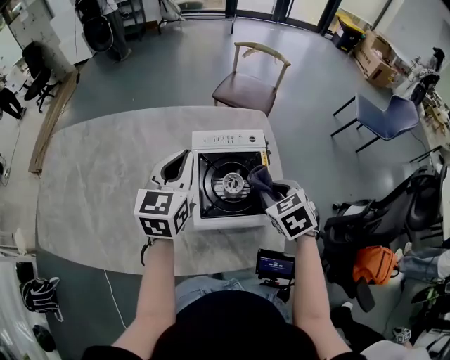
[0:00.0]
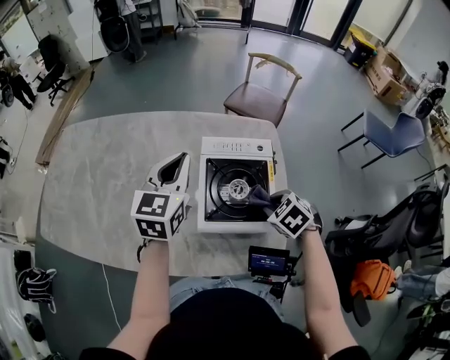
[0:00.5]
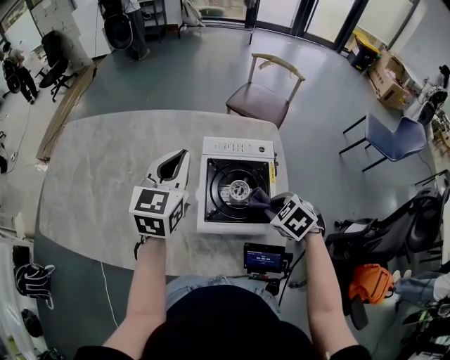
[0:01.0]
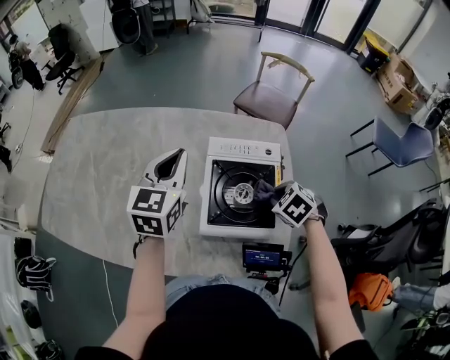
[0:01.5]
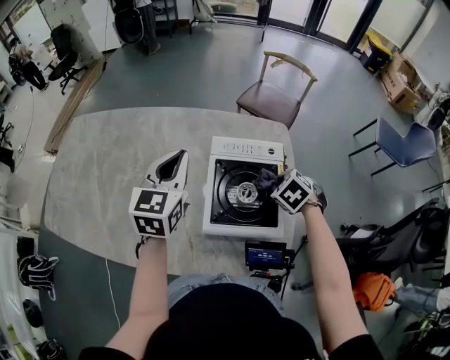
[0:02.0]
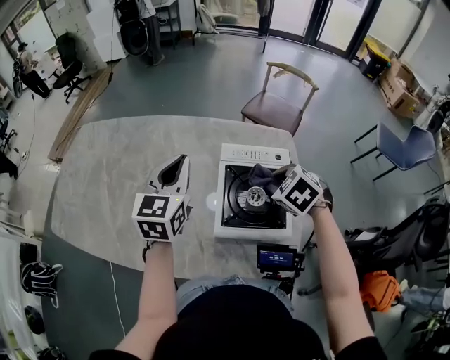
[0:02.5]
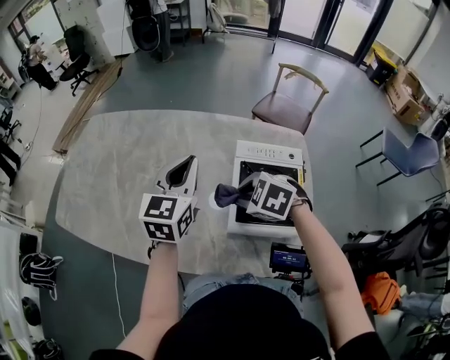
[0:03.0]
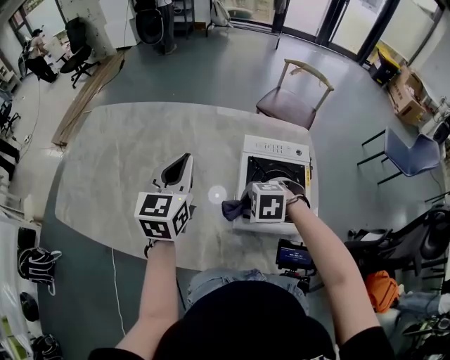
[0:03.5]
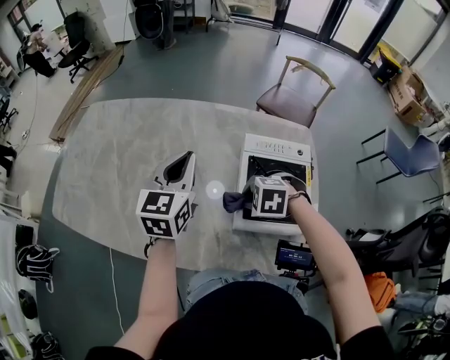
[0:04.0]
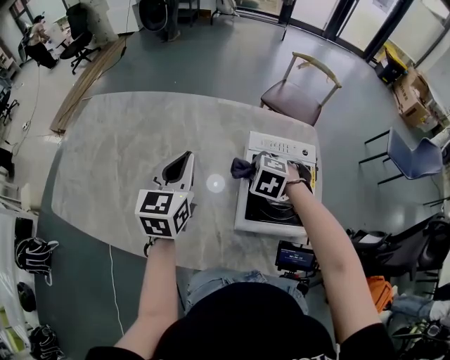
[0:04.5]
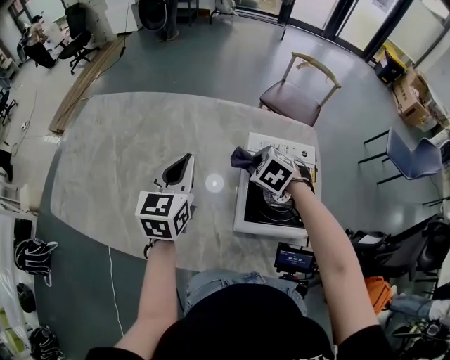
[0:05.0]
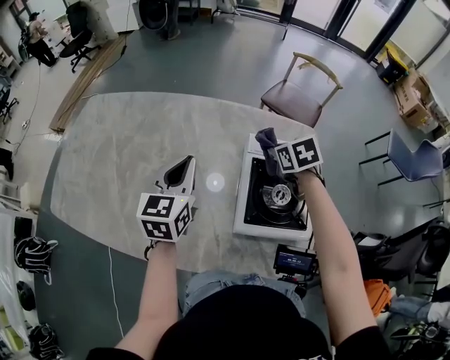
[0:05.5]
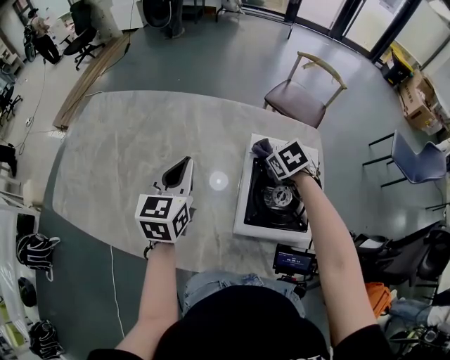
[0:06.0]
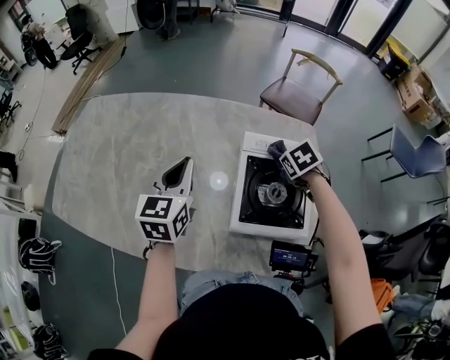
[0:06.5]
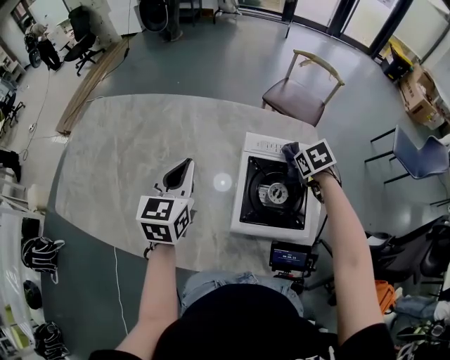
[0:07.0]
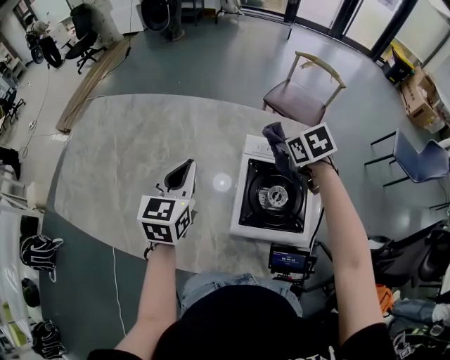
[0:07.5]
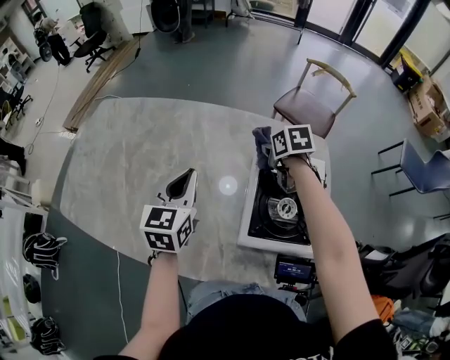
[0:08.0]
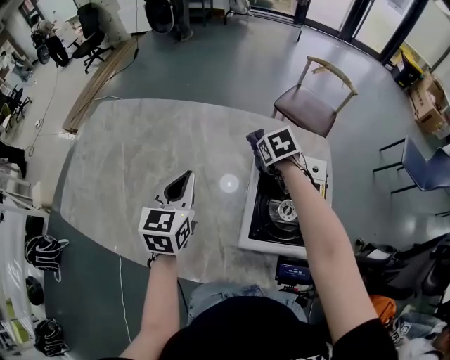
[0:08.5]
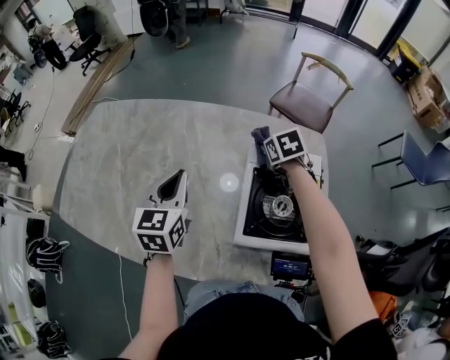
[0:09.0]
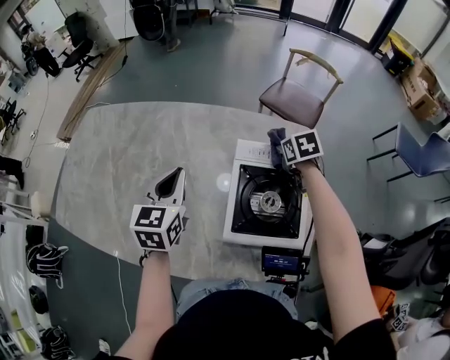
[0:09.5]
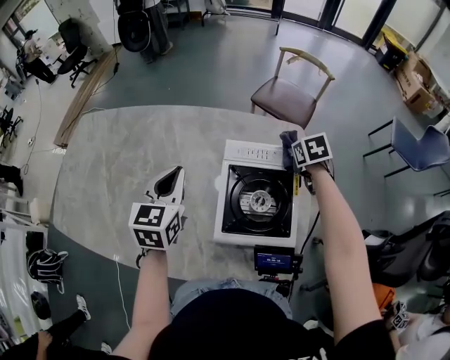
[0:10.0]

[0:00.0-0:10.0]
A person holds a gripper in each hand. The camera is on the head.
0:00.0 to 0:02.0: The right gripper goes roughly 10 cm forward and downward, and changes its angle by some 20 degrees; the left gripper heads to the left, covering some 5 cm.
0:02.0 to 0:04.0: The left gripper ends up about 10 cm from where it was. Meanwhile the right gripper reaches approximately 10 cm upward, then returns, and rotates approximately 40 degrees.
0:04.0 to 0:06.0: The right gripper changes place by roughly 20 cm, and twists some 50 degrees clockwise, seen from behind.
0:06.0 to 0:08.0: The right gripper heads forward, covering roughly 5 cm, moves about 10 cm to the right and comes back, and turns by some 30 degrees.
0:08.0 to 0:10.0: The right gripper travels to the right by some 20 cm. The left gripper shifts about 5 cm to the right.

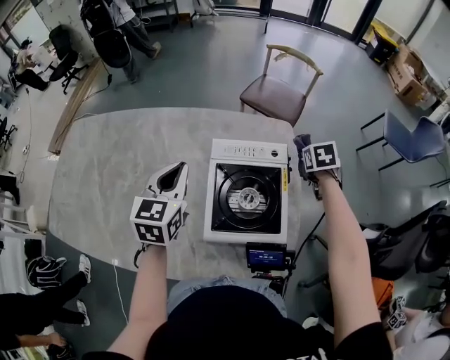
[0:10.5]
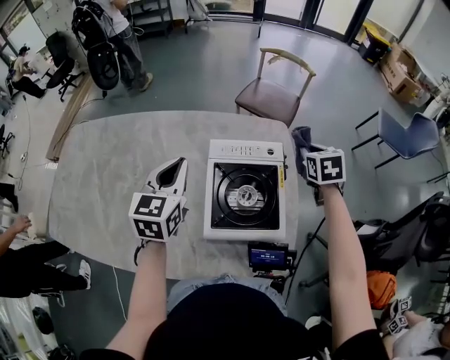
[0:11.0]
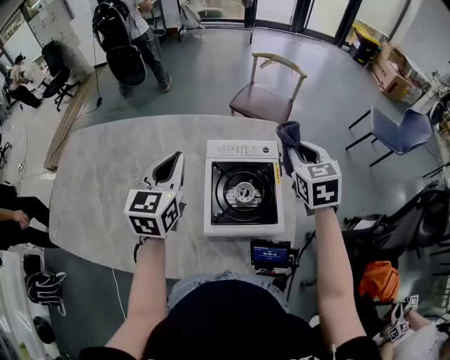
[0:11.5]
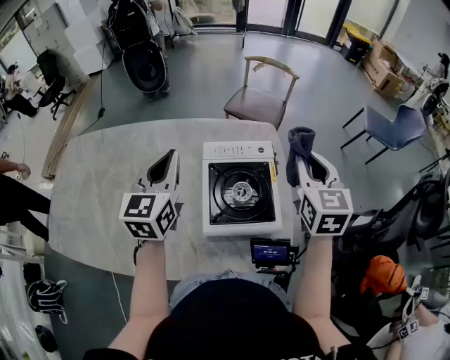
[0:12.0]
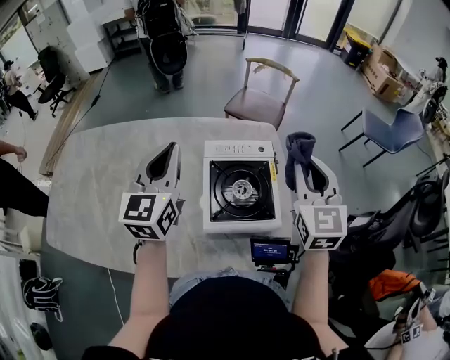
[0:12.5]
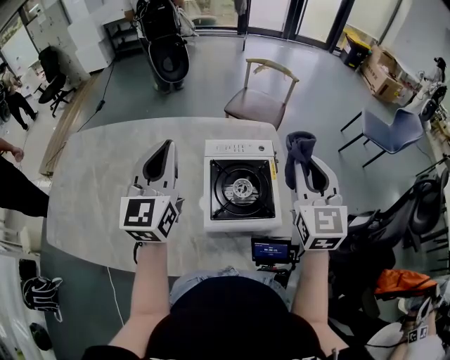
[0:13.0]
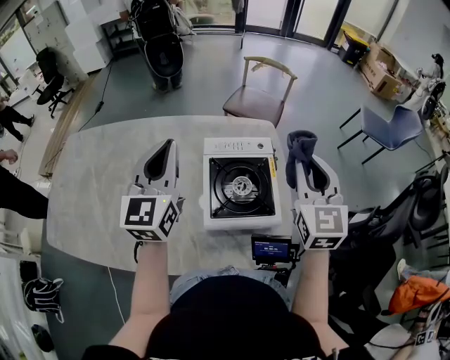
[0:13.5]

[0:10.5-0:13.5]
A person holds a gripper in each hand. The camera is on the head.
0:10.5 to 0:12.0: The left gripper travels upward by approximately 10 cm. Meanwhile the right gripper moves upward and backward, about 25 cm, and points its fingers roughly 40 degrees further upward.
0:12.0 to 0:13.5: The right gripper shifts by roughly 5 cm. The left gripper moves roughly 5 cm.

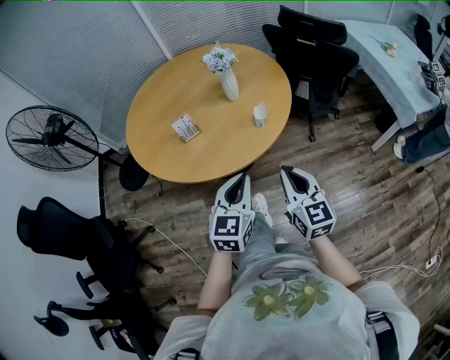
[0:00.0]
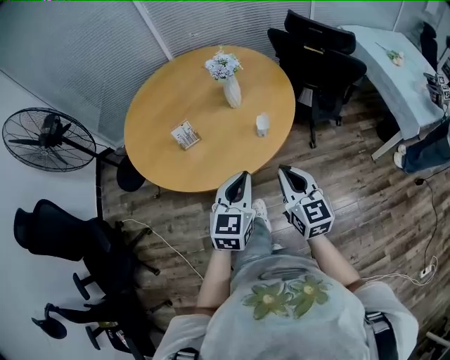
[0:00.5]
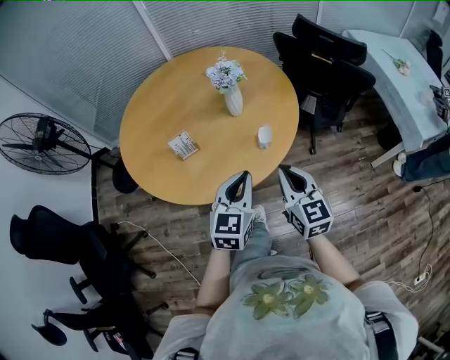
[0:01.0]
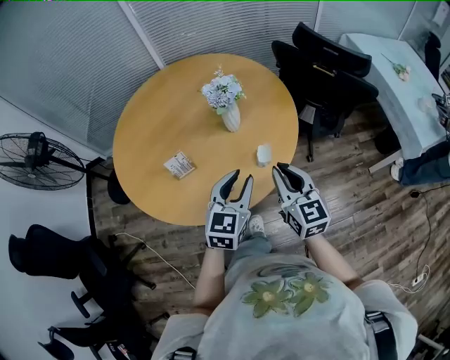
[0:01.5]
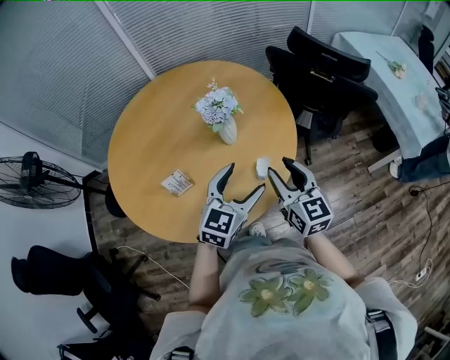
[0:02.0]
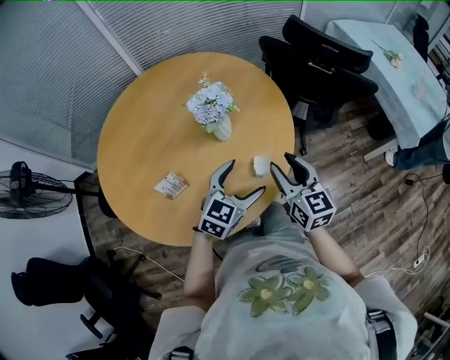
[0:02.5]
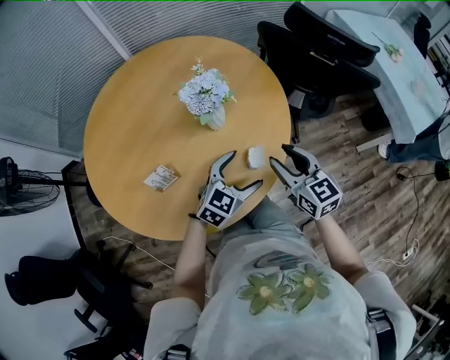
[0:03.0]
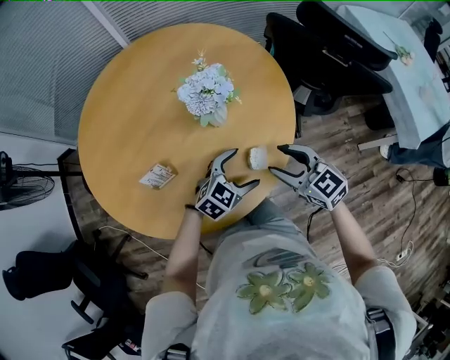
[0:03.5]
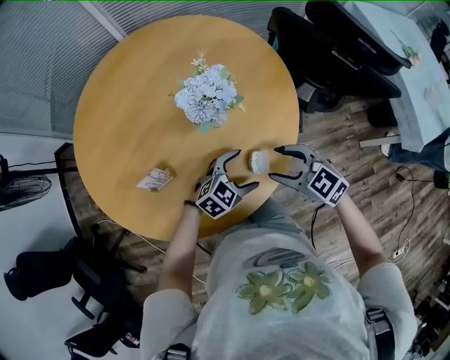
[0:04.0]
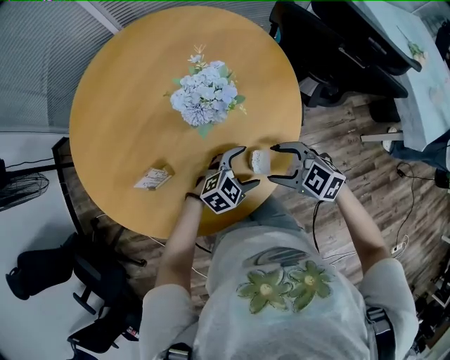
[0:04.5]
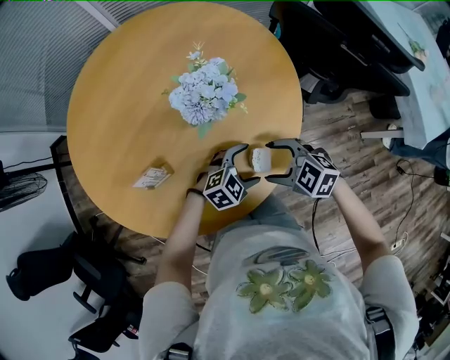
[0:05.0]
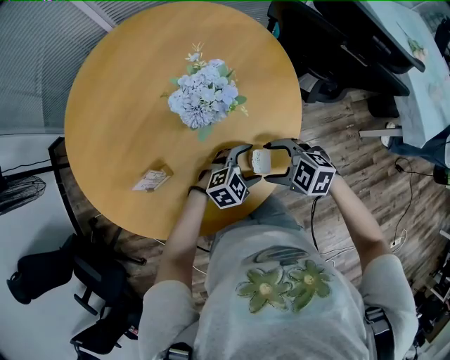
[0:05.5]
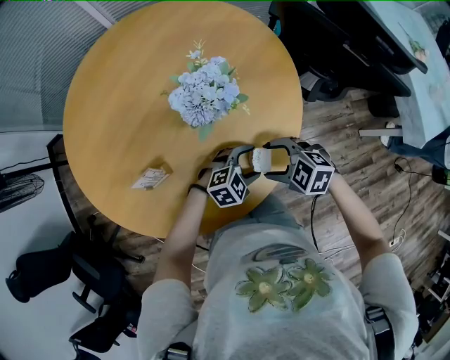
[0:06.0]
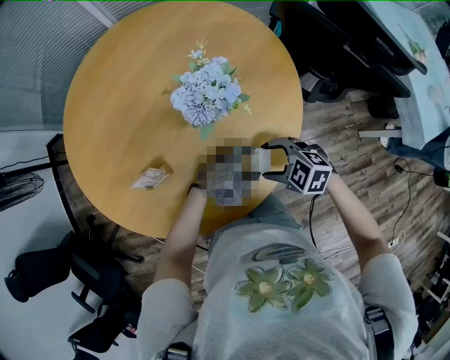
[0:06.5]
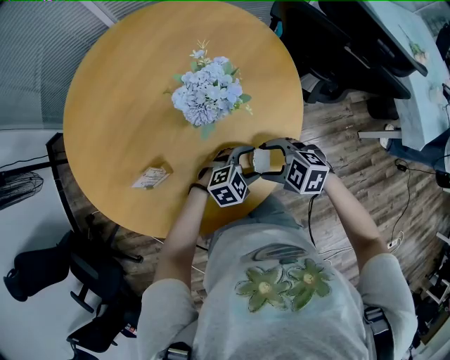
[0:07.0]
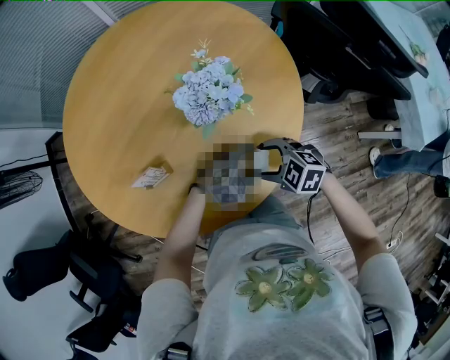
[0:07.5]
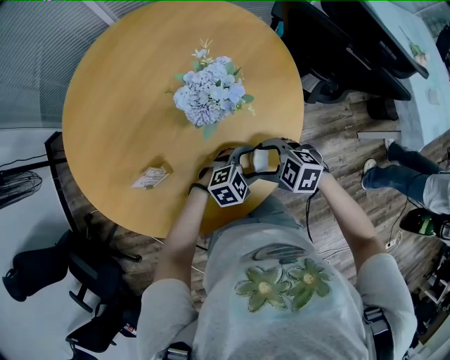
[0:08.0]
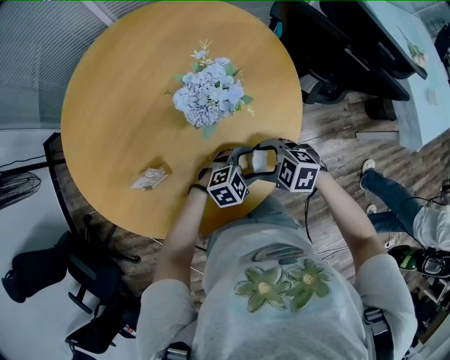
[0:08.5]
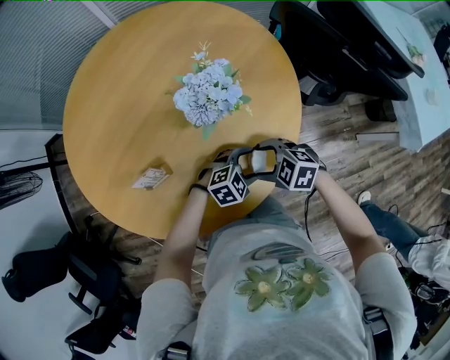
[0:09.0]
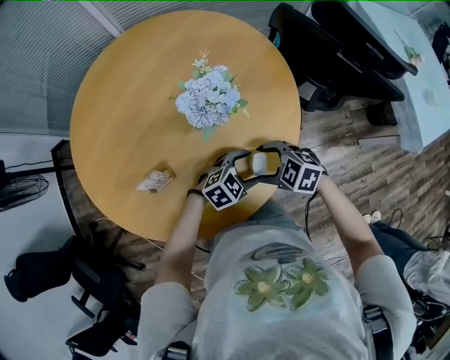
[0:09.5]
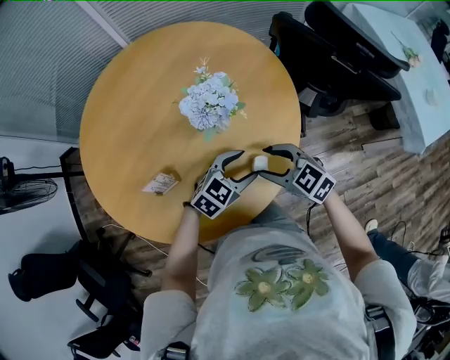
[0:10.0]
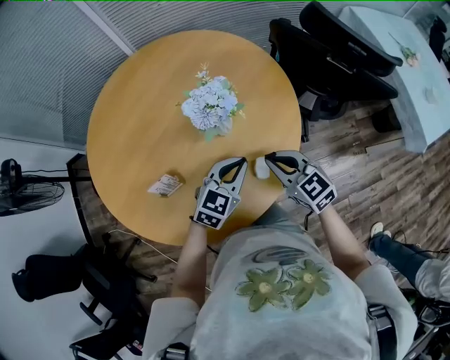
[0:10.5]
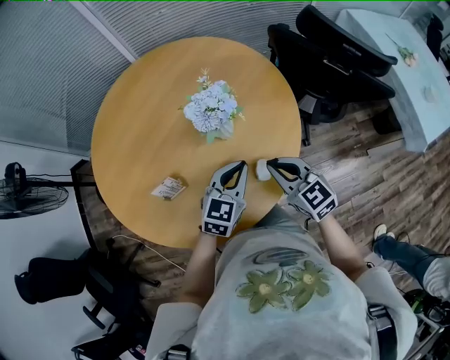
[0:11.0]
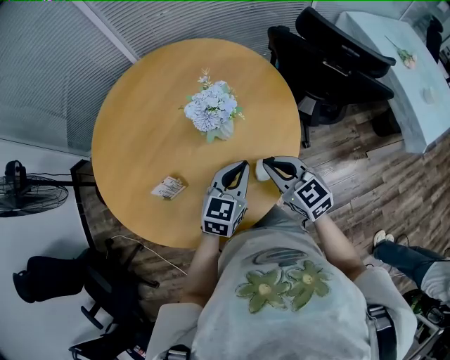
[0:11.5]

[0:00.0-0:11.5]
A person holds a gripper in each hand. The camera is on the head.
0:00.0 to 0:02.0: Both grippers move forward, roughly 25 cm. The left gripper opens. The right gripper opens up.
0:02.0 to 0:04.0: The left gripper moves downward, roughly 20 cm, and swivels some 30 degrees, while the right gripper shifts roughly 15 cm downward and forward, and rotates roughly 50 degrees.
0:04.0 to 0:06.0: Both grippers move downward, roughly 5 cm. The right gripper rotates roughly 30 degrees.
0:06.0 to 0:09.5: The grippers stay close to where they were, moving slightly.
0:09.5 to 0:11.5: Both grippers move upward, approximately 15 cm. The right gripper turns by approximately 50 degrees, and closes its fingers, while the left gripper swivels approximately 40 degrees, and closes up.

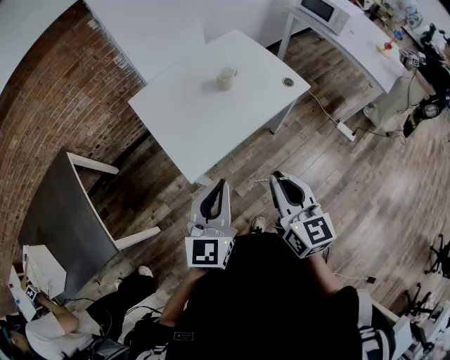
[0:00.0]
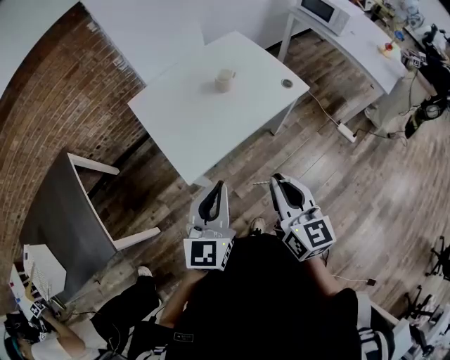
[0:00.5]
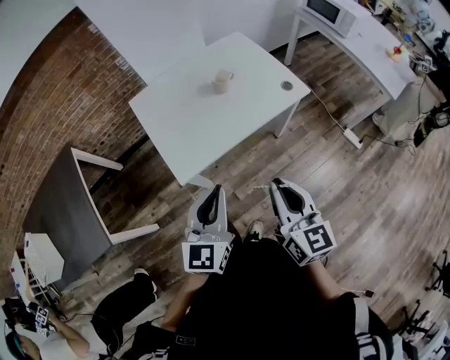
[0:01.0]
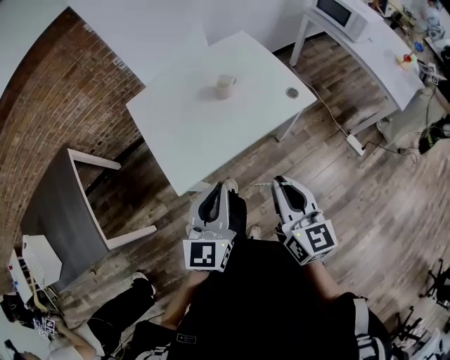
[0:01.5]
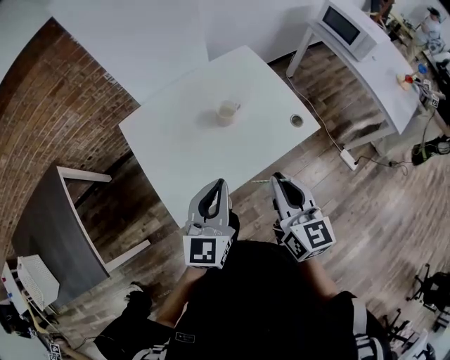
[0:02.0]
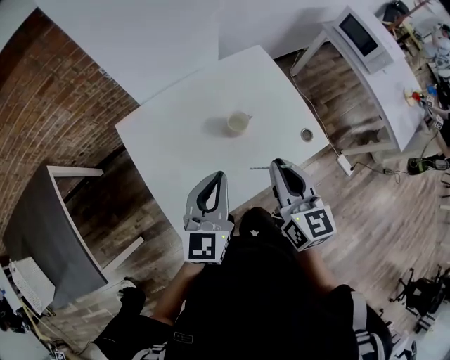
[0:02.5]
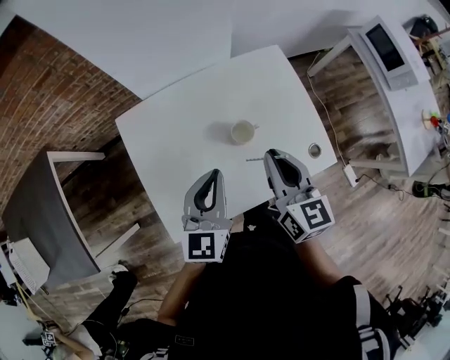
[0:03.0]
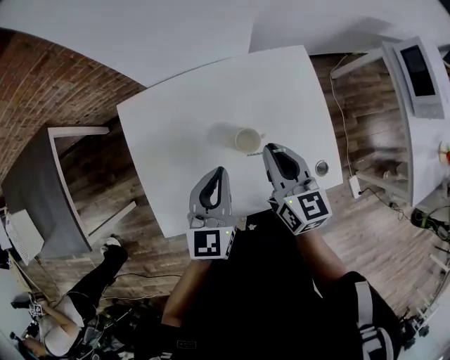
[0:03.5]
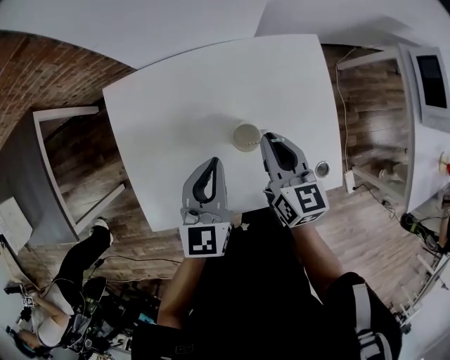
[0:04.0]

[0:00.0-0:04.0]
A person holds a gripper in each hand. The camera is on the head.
0:00.0 to 0:02.0: Both grippers move forward, roughly 20 cm.
0:02.0 to 0:04.0: The two grippers go some 30 cm forward and downward. The left gripper changes its angle by roughly 30 degrees. Meanwhile the right gripper changes its angle by approximately 20 degrees.
